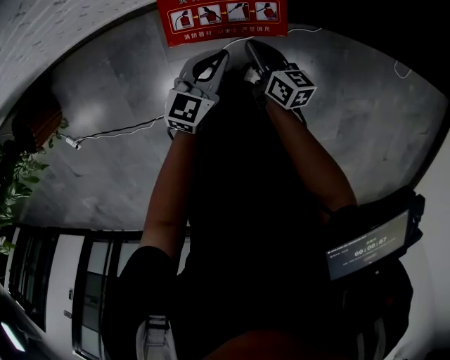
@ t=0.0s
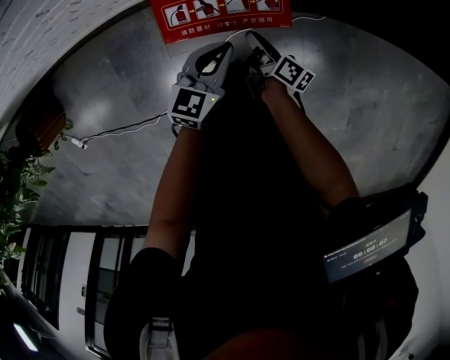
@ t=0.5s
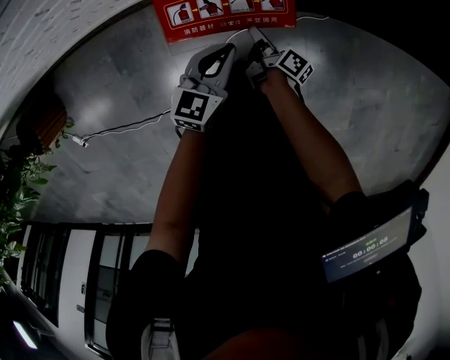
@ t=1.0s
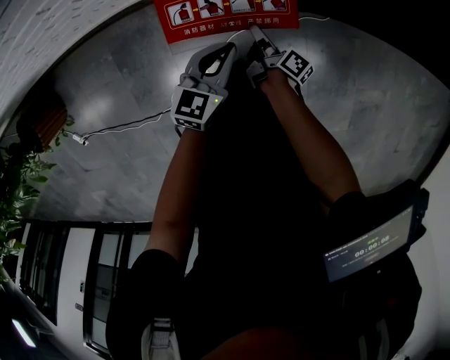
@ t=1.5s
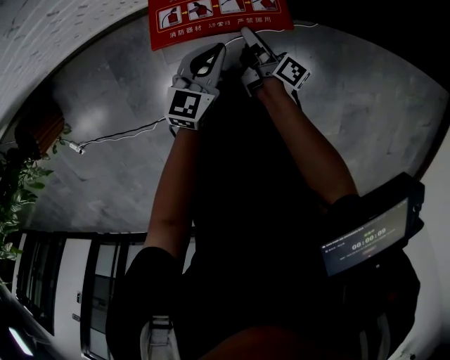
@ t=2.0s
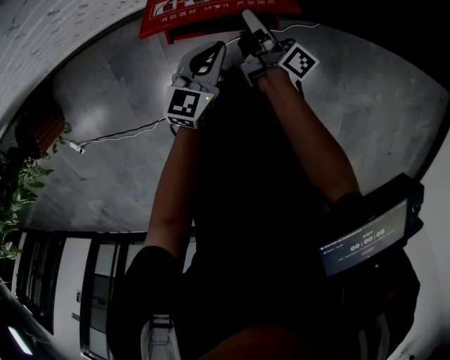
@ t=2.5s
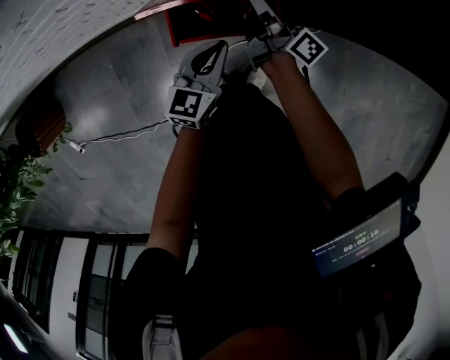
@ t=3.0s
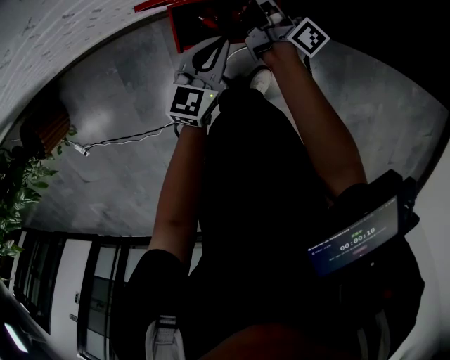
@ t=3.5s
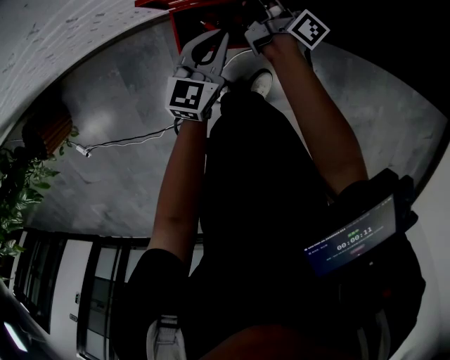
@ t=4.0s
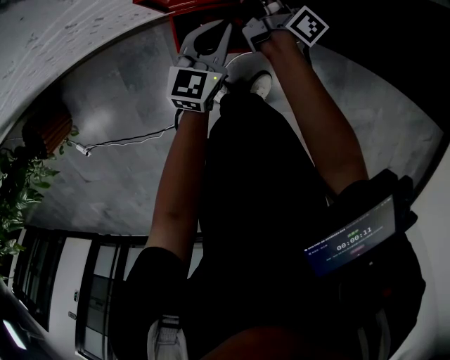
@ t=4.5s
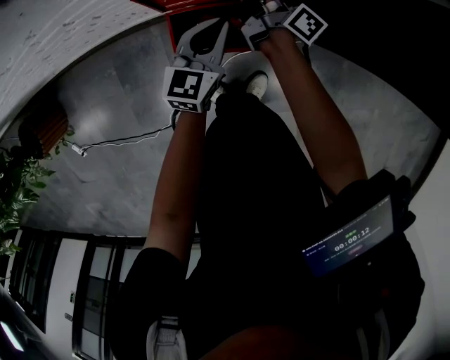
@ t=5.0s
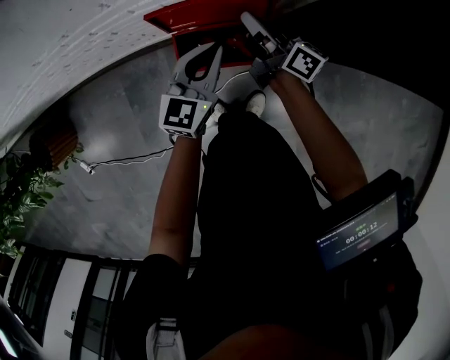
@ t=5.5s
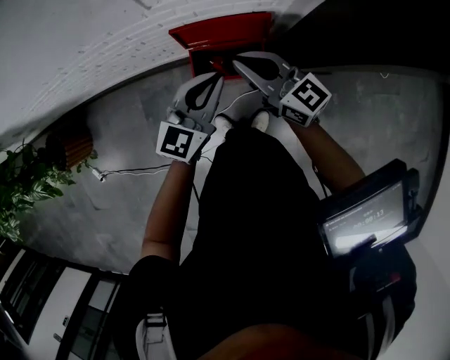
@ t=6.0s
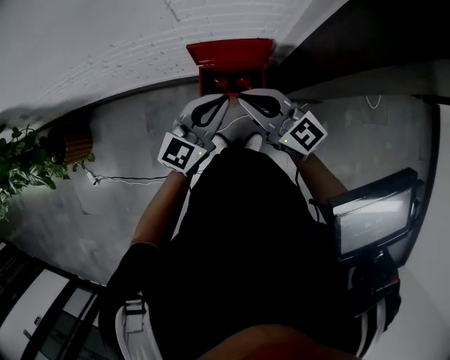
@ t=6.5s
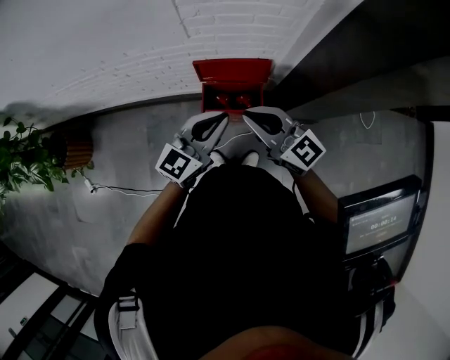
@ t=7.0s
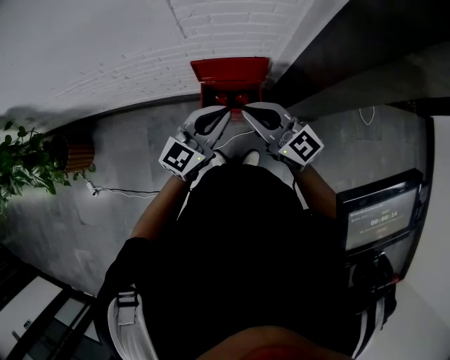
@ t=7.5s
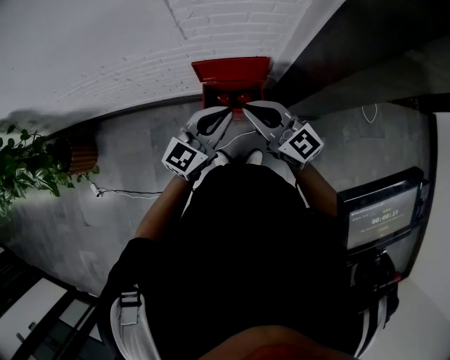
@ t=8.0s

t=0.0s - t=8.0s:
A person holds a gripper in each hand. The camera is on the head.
t=0.0s - t=2.0s: The right gripper goes downward and returns, approximately 10 cm each way, and rotates about 40 degrees.
t=2.0s - t=4.0s: The left gripper shifts approximately 10 cm forward; the right gripper is displaced forward and upward by about 20 cm.
t=4.0s - t=6.0s: The left gripper travels upward by about 25 cm; the right gripper travels upward and backward by some 35 cm, and rolls counterclockwise, seen from behind, by approximately 60 degrees.
t=6.0s - t=8.0s: Both grippers move upward and backward, roughly 15 cm.

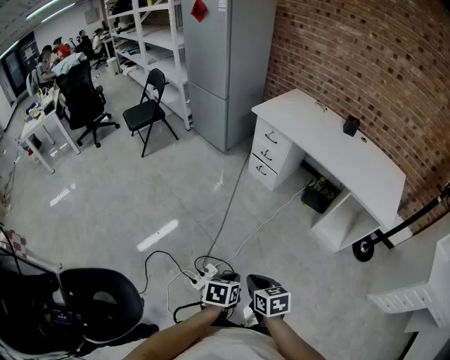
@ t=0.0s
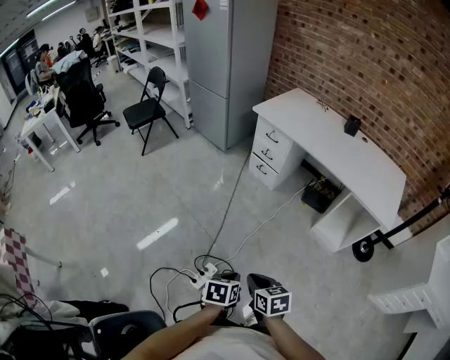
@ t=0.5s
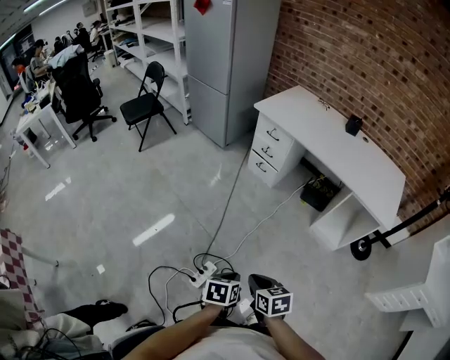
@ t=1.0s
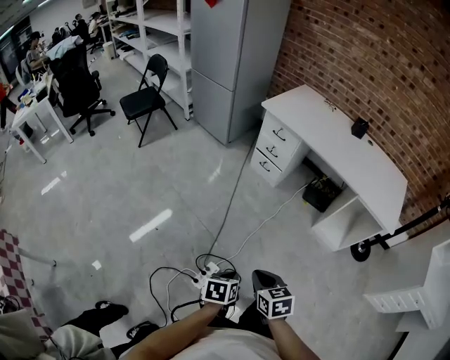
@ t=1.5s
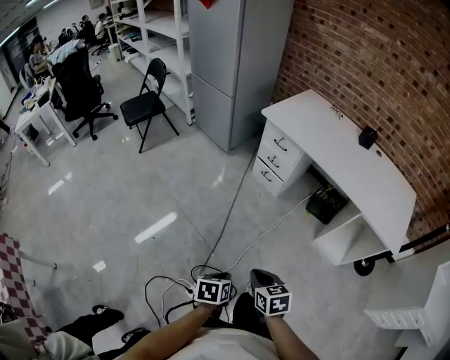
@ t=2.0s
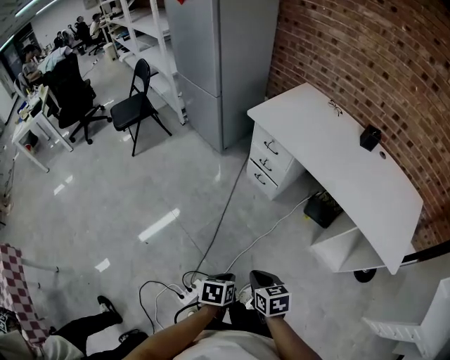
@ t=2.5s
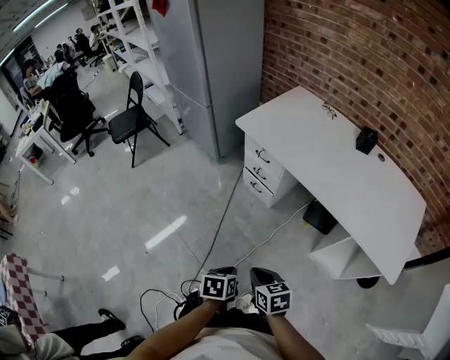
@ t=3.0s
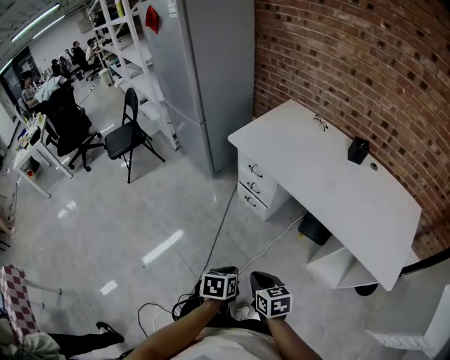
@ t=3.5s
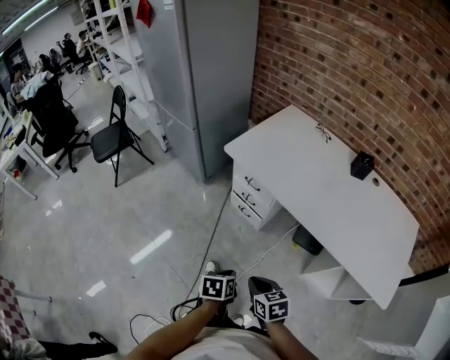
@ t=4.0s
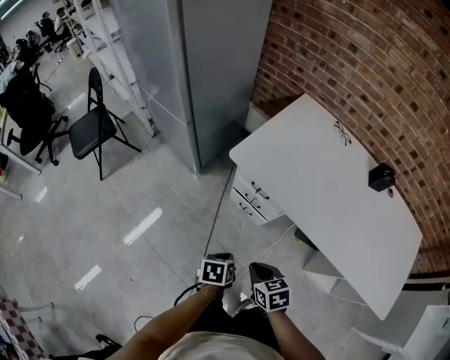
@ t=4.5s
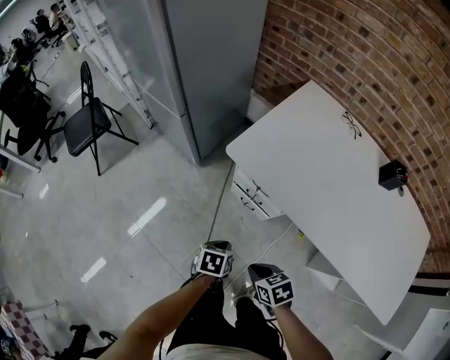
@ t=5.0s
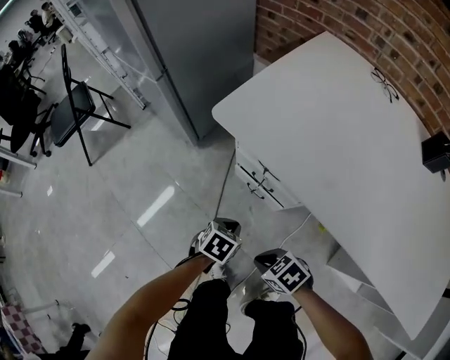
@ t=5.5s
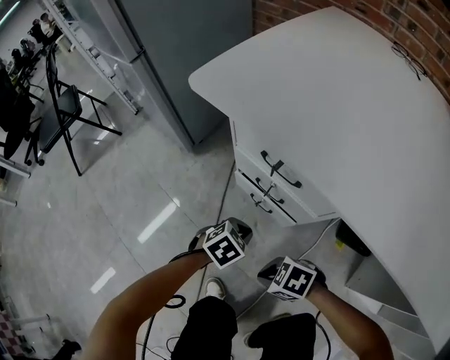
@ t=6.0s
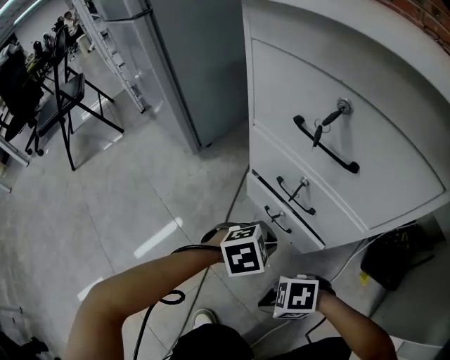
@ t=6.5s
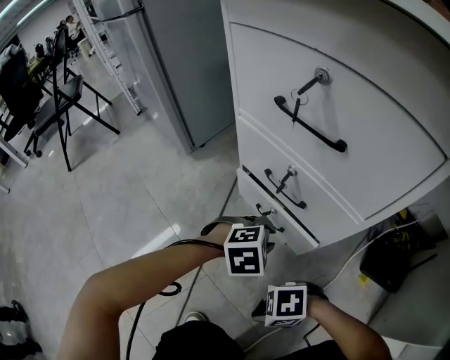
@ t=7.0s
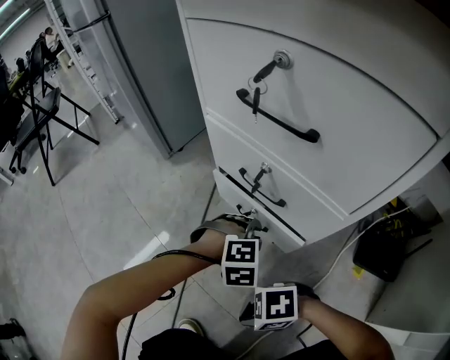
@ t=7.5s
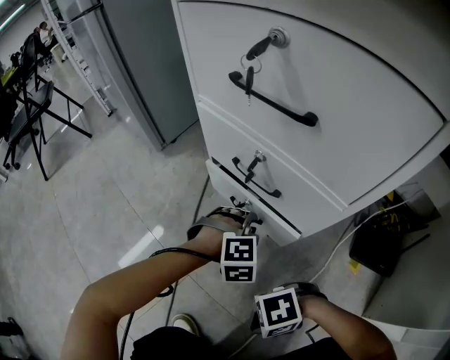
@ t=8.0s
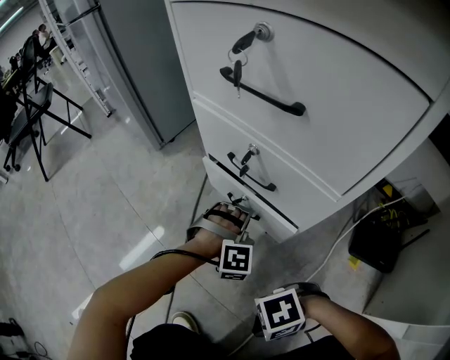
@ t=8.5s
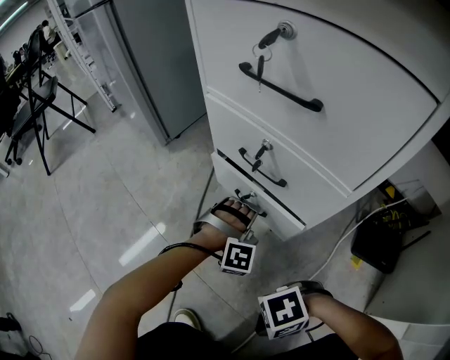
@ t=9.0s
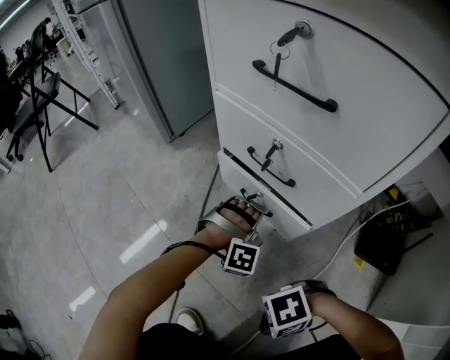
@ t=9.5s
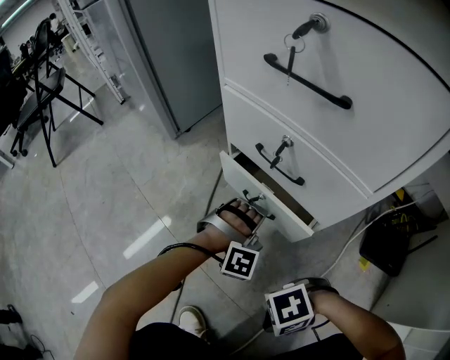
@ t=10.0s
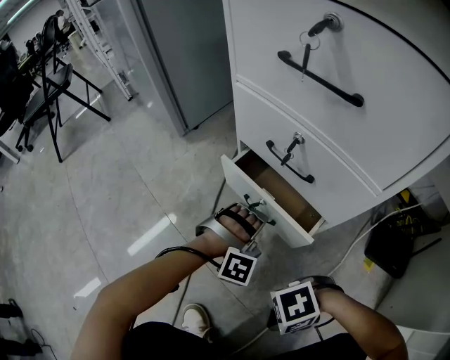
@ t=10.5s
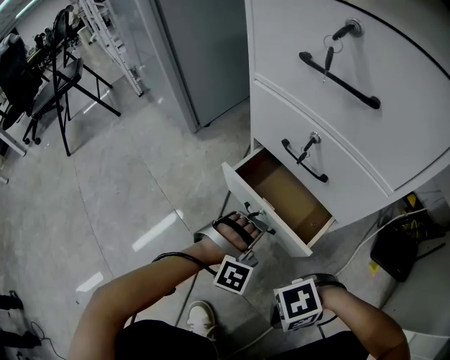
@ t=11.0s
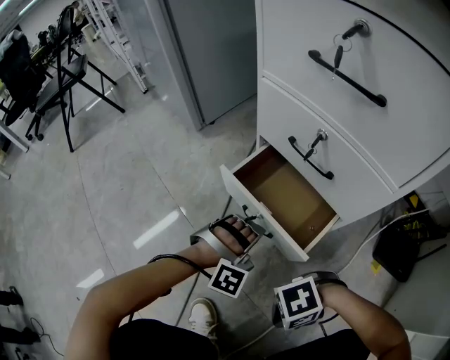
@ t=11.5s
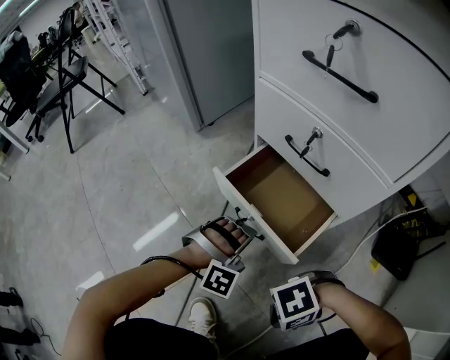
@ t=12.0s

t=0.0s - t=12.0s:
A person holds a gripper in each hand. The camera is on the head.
t=0.0s - t=2.0s: The right gripper moves about 15 cm.
t=2.0s - t=4.0s: The right gripper ends up approximately 35 cm from where it was.
t=4.0s - t=6.0s: The right gripper is displaced downward by approximately 40 cm, and swivels some 60 degrees.
t=6.0s - t=8.0s: The right gripper shifts some 20 cm downward, and swivels roughly 40 degrees.

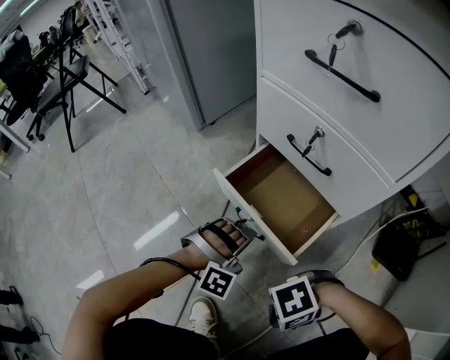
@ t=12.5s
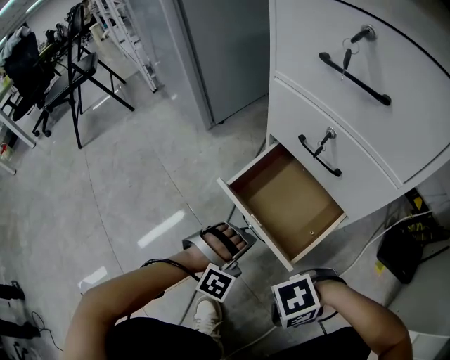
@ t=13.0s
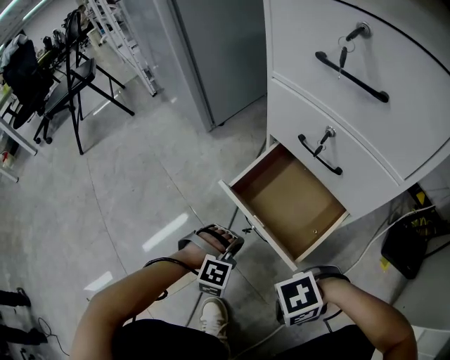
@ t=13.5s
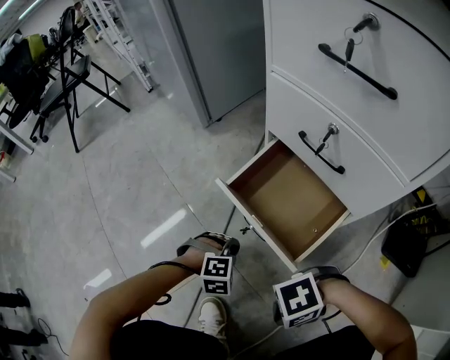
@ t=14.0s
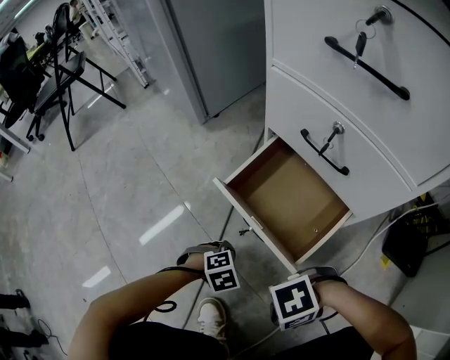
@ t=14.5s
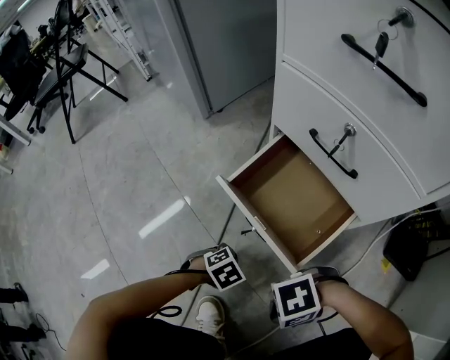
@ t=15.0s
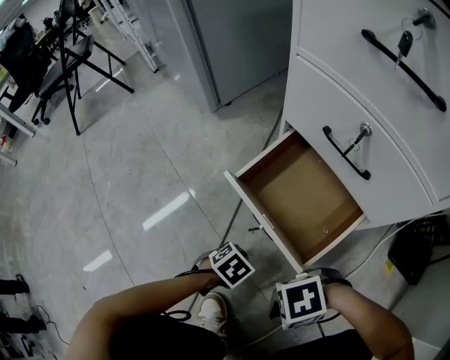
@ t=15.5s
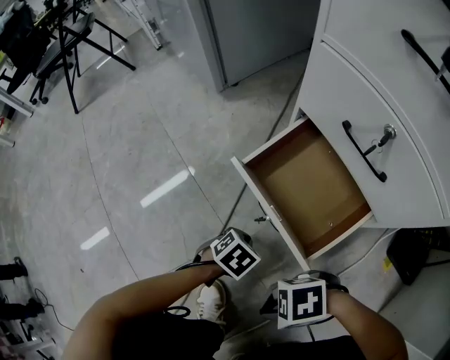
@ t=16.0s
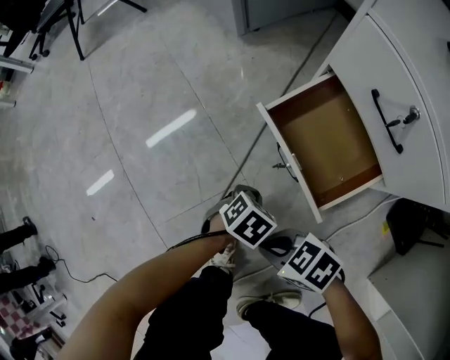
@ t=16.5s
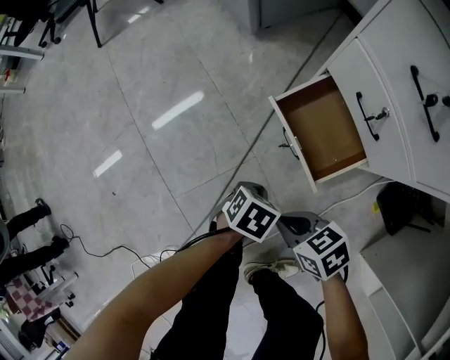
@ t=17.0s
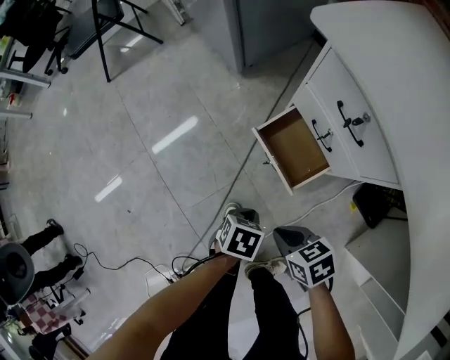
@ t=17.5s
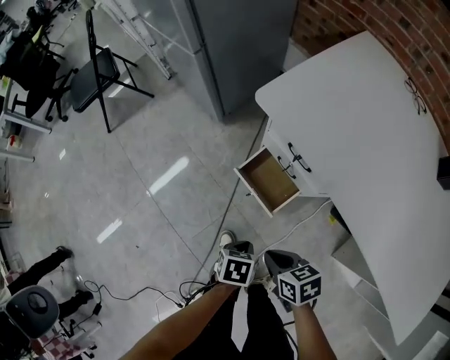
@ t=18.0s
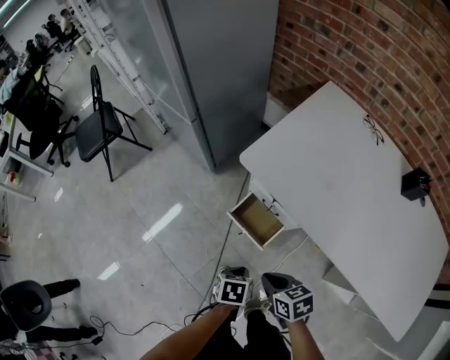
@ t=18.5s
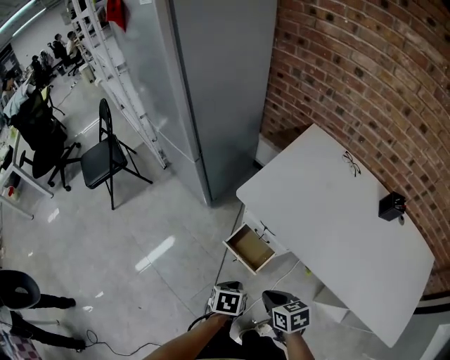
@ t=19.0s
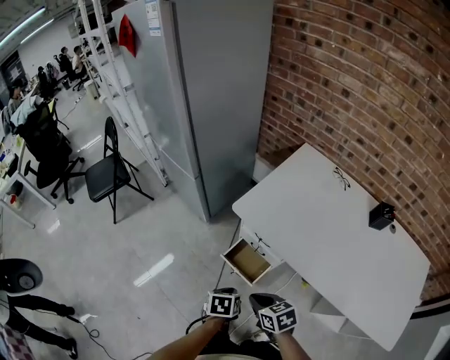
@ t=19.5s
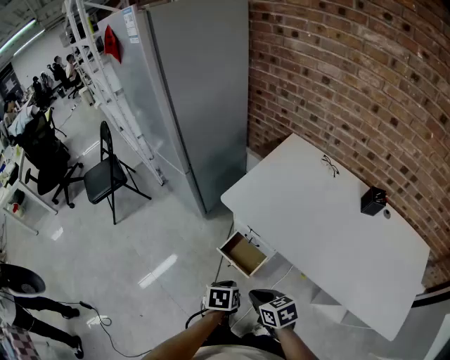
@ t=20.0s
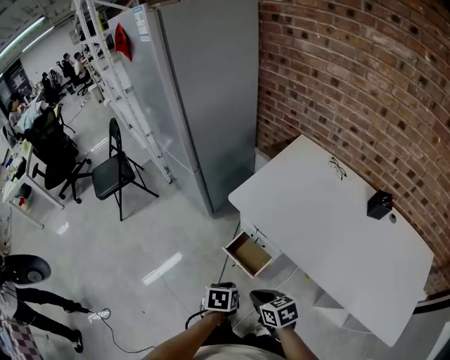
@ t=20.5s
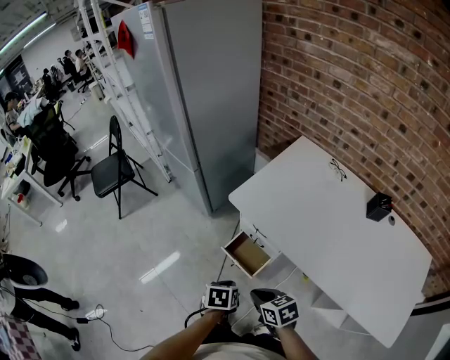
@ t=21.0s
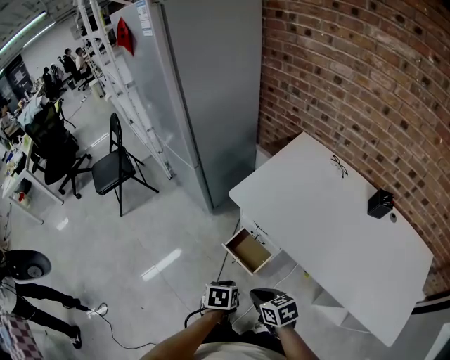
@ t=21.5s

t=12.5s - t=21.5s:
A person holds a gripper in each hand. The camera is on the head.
t=14.5s - t=17.0s: The right gripper is displaced upward by approximately 15 cm, and turns by approximately 70 degrees.
t=17.0s - t=19.5s: The right gripper heads upward, covering roughly 50 cm, and rotates about 40 degrees.
t=19.5s - t=21.5s: The right gripper ends up about 5 cm from where it was.
